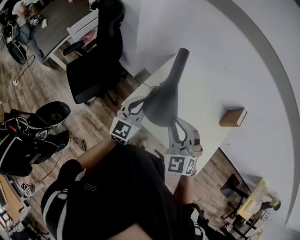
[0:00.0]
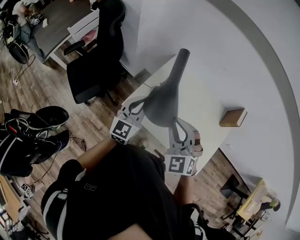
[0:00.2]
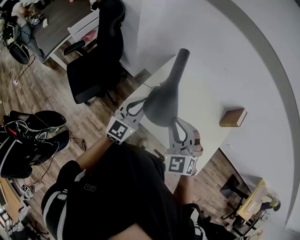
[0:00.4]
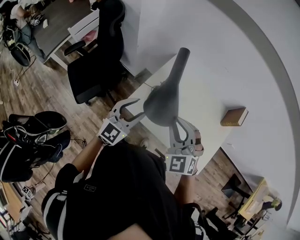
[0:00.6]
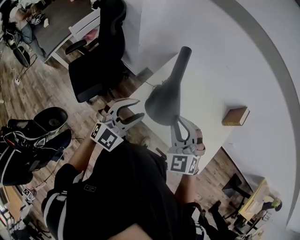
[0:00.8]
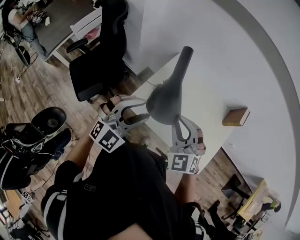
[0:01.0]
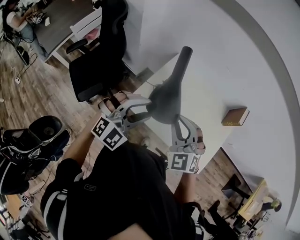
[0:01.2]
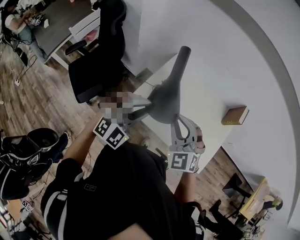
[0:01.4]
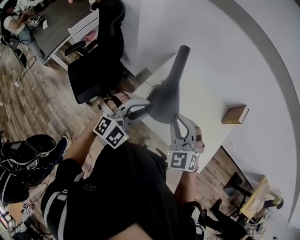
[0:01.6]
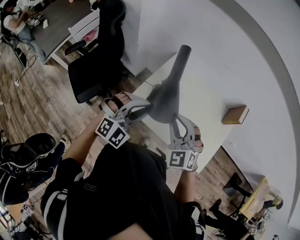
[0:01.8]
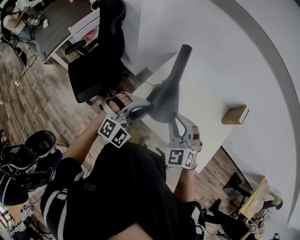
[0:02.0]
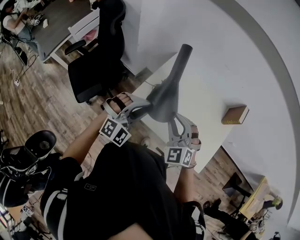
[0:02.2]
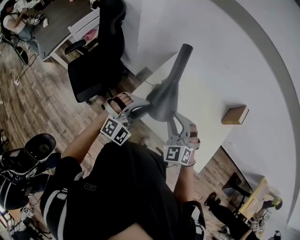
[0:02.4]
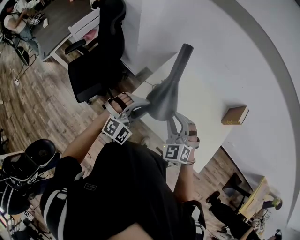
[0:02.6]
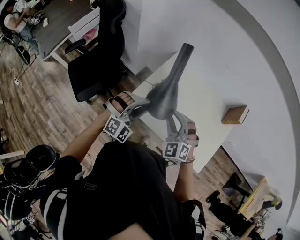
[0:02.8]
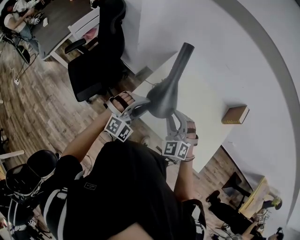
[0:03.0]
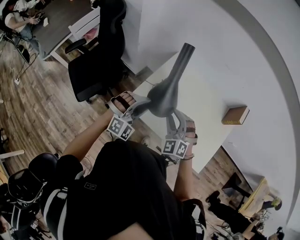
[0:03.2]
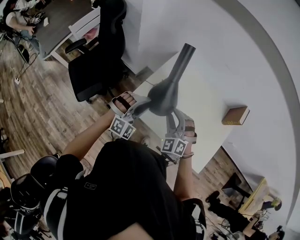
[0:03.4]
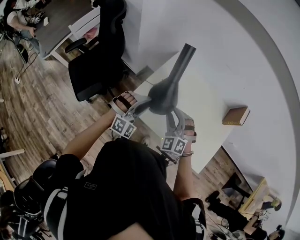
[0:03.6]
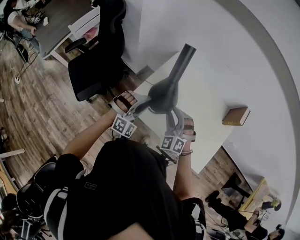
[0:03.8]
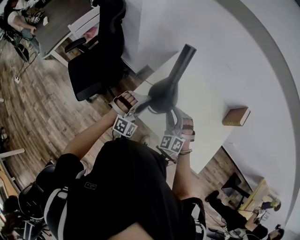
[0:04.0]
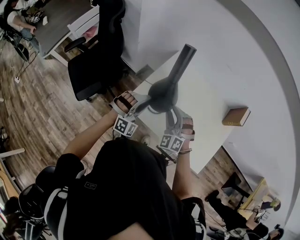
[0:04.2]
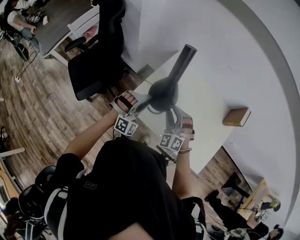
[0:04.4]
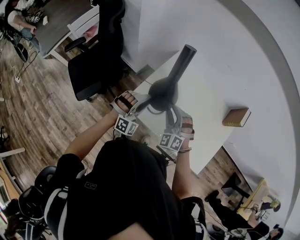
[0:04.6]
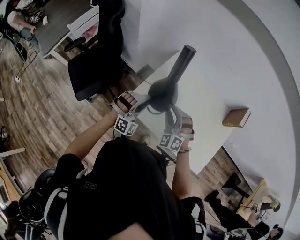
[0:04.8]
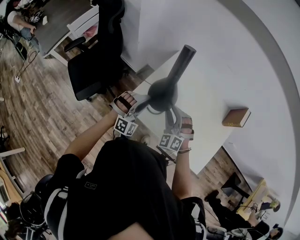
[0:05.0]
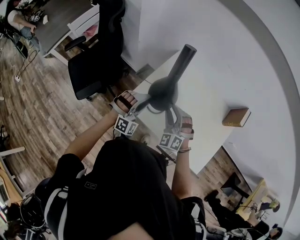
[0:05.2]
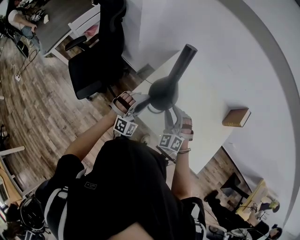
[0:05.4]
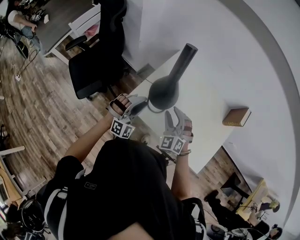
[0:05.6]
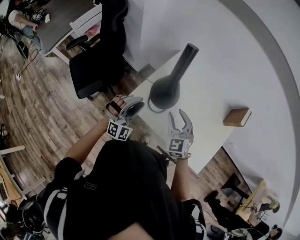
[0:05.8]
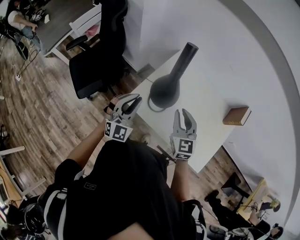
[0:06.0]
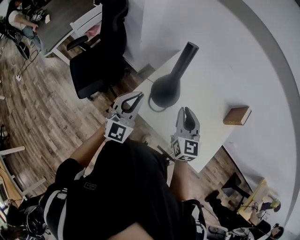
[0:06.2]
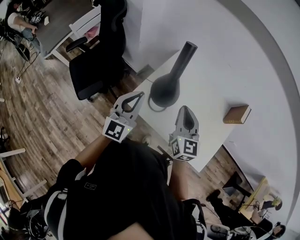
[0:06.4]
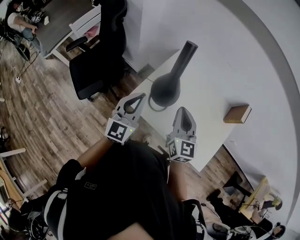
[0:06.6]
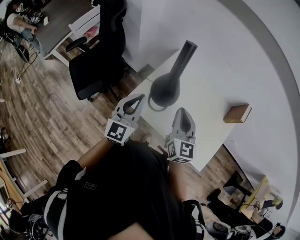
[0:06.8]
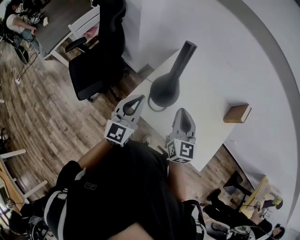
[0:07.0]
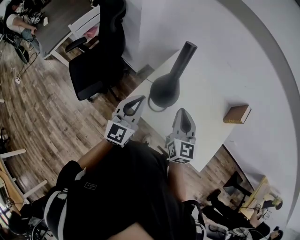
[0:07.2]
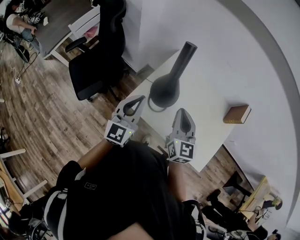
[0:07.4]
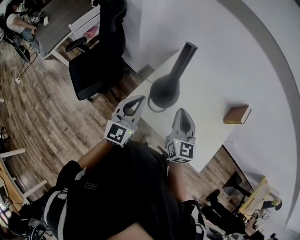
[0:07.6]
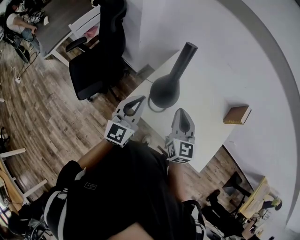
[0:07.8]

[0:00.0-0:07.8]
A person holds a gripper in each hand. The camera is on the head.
0:00.0 to 0:01.6: The left gripper goes approximately 5 cm backward, rotates around the line of its fingers by approximately 50 degrees, clockwise from behind, and opens and closes again.
0:01.6 to 0:03.2: The two grippers go some 10 cm downward.
0:03.2 to 0:04.6: The right gripper moves some 5 cm. Meanwhile the left gripper heads downward, covering some 5 cm.
0:04.6 to 0:06.2: The right gripper moves upward, roughly 10 cm, twists some 60 degrees clockwise, seen from behind, and closes up. Meanwhile the left gripper travels upward and to the left by roughly 15 cm, twists approximately 50 degrees counterclockwise, seen from behind, and closes its fingers.
0:06.2 to 0:07.8: The left gripper changes its angle by roughly 20 degrees.

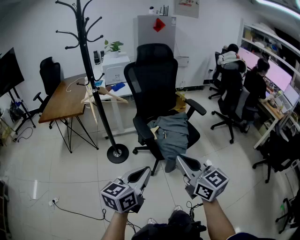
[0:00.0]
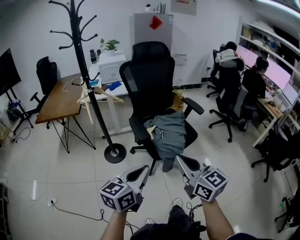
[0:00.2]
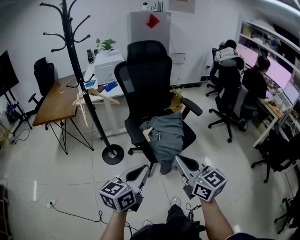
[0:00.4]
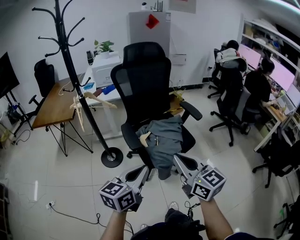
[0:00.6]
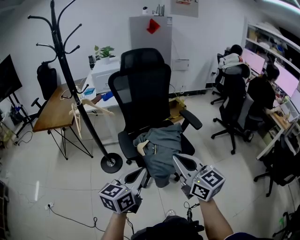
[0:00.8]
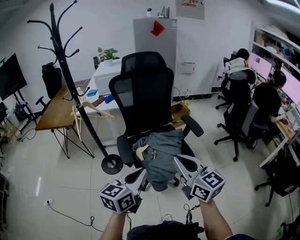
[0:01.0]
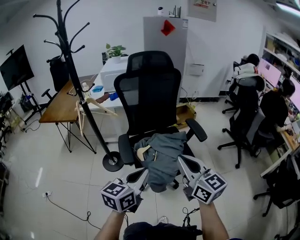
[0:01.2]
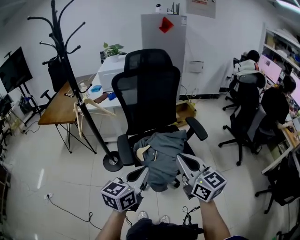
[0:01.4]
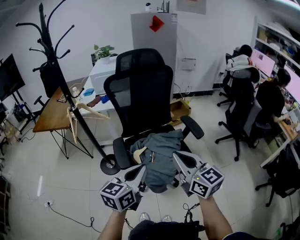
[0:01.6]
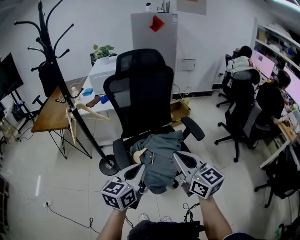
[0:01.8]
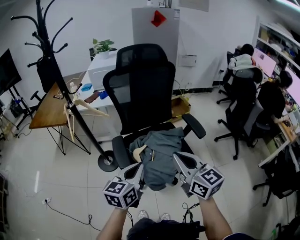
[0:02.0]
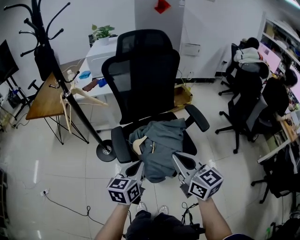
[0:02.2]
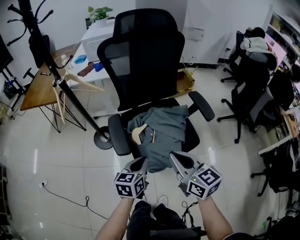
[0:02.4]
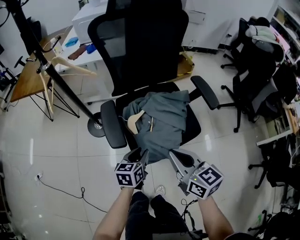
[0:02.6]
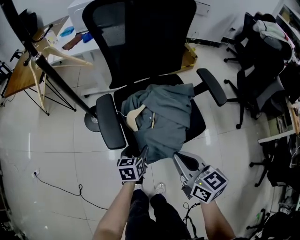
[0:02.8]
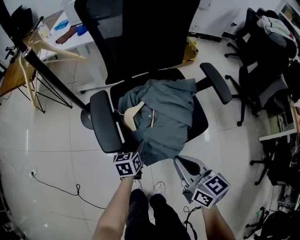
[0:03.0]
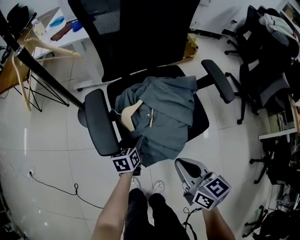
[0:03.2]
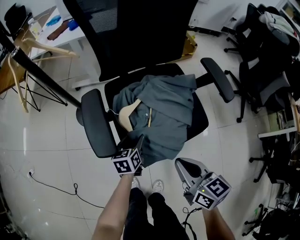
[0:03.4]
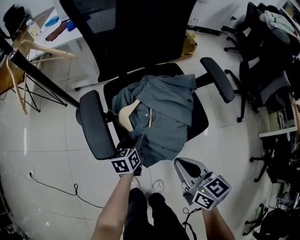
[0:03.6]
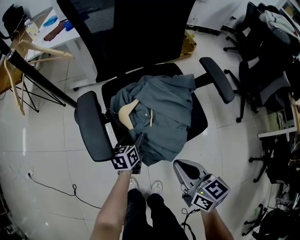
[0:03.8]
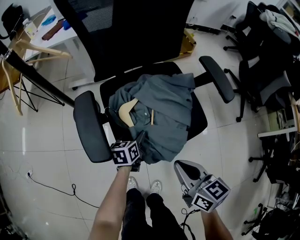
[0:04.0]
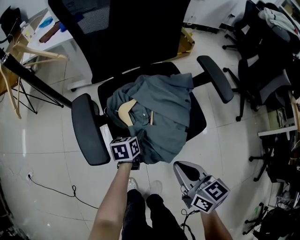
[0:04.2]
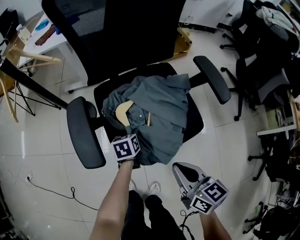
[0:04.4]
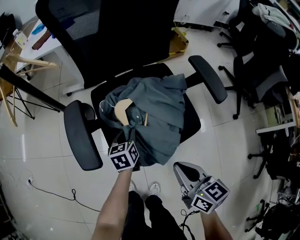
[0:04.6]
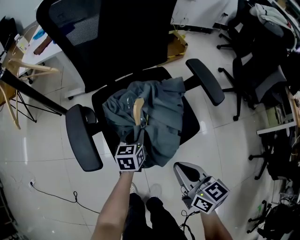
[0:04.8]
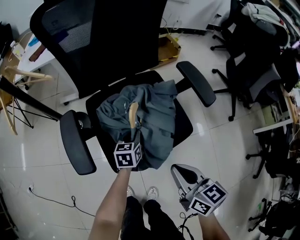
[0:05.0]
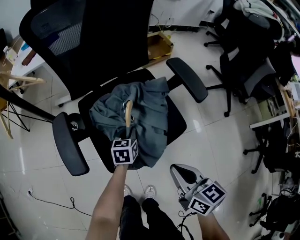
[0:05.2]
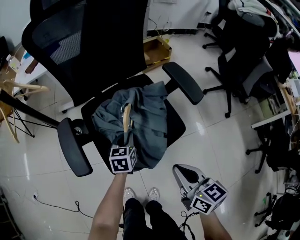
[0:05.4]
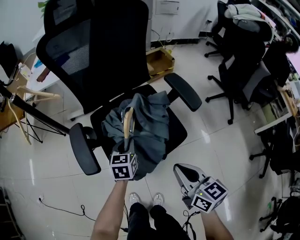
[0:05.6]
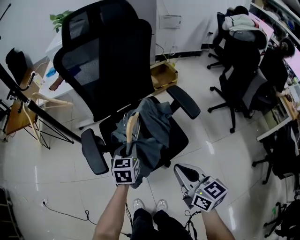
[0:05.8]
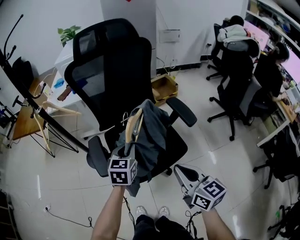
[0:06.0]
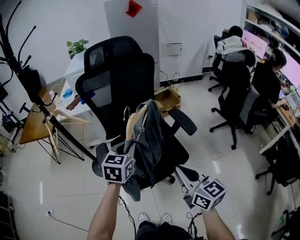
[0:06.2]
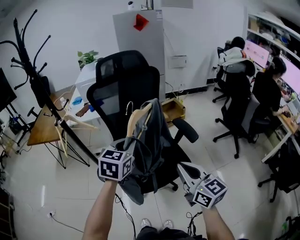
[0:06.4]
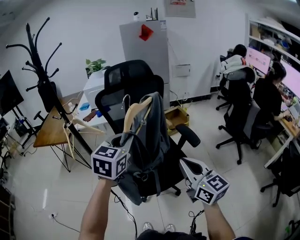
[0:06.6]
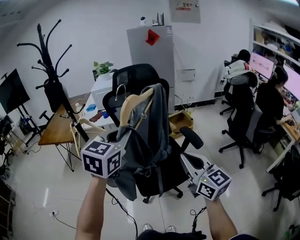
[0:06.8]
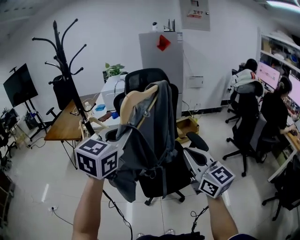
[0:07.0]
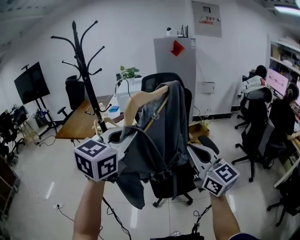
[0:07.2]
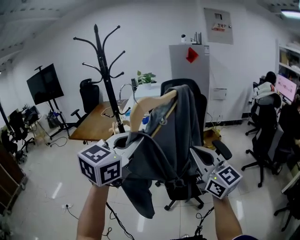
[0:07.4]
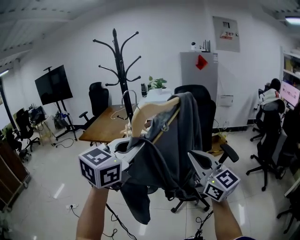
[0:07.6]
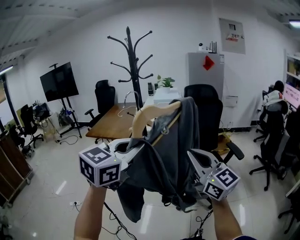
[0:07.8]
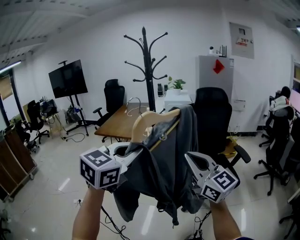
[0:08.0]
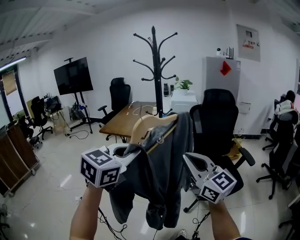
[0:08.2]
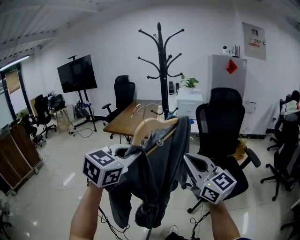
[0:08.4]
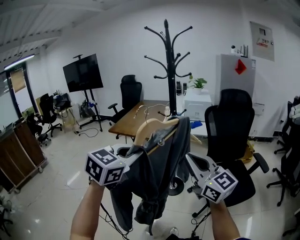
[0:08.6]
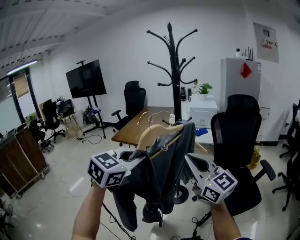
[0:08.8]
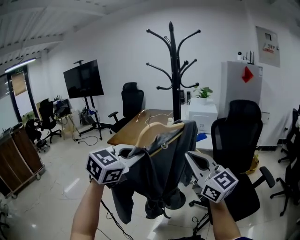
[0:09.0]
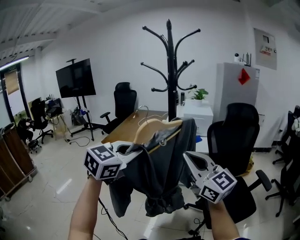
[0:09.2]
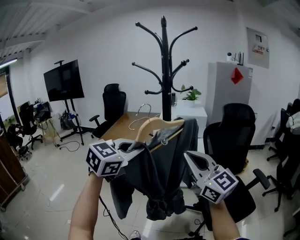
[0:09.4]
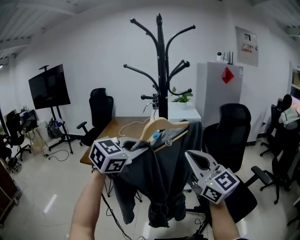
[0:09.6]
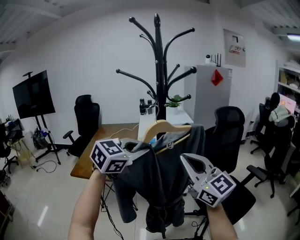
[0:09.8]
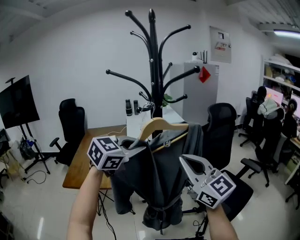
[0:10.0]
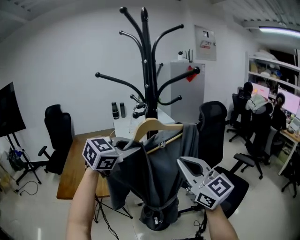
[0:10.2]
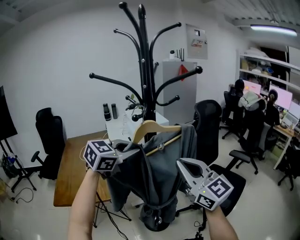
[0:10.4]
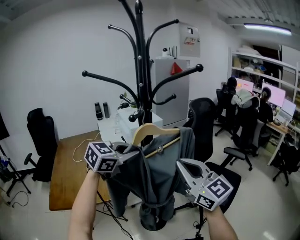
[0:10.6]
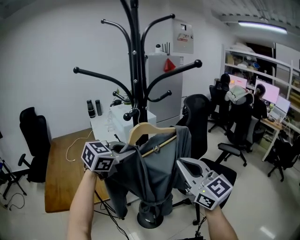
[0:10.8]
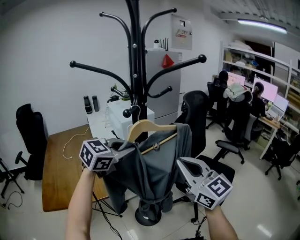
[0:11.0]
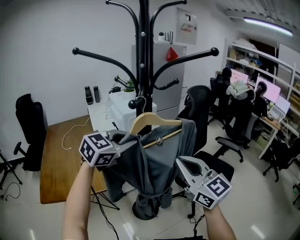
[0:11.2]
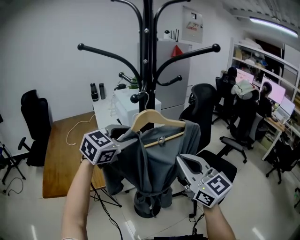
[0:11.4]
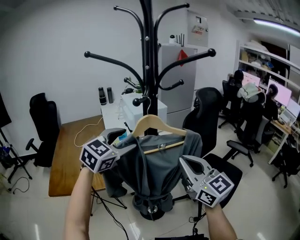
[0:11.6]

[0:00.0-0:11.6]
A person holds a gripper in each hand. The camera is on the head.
0:00.0 to 0:01.4: The two grippers go some 25 cm forward and to the right.
0:01.4 to 0:02.8: The right gripper is displaced downward by about 20 cm, and changes its angle by roughly 20 degrees; the left gripper is displaced downward by roughly 35 cm, swivels approximately 30 degrees, and opens.
0:02.8 to 0:04.4: The left gripper travels forward and downward by about 15 cm, and closes its fingers; the right gripper moves downward, about 10 cm.
0:04.4 to 0:05.8: The right gripper goes about 15 cm upward and to the right; the left gripper heads upward, covering about 20 cm, turns by about 30 degrees, and closes.
0:05.8 to 0:07.2: The right gripper is displaced upward by some 30 cm, and turns by approximately 40 degrees. The left gripper is displaced upward by some 50 cm, and swivels approximately 30 degrees.
0:07.2 to 0:08.8: The grippers both shift to the left by approximately 40 cm. The right gripper turns by some 20 degrees.
0:08.8 to 0:10.2: The left gripper moves roughly 40 cm, and turns by roughly 50 degrees; the right gripper moves some 25 cm, and changes its angle by approximately 40 degrees.
0:10.2 to 0:11.6: The right gripper shifts approximately 5 cm downward. Meanwhile the left gripper shifts by approximately 10 cm, and opens its fingers.

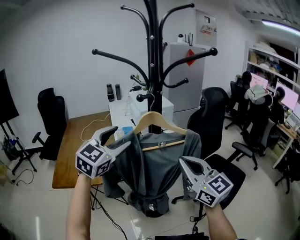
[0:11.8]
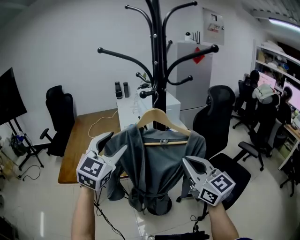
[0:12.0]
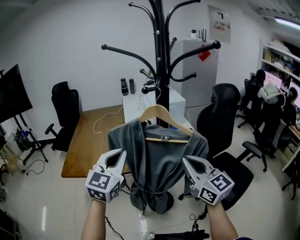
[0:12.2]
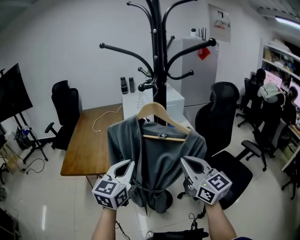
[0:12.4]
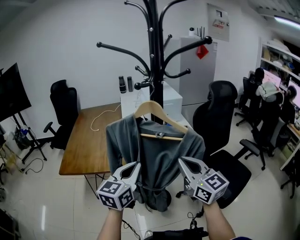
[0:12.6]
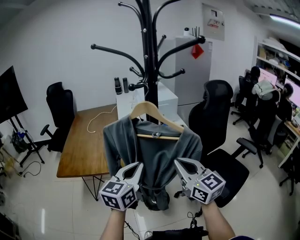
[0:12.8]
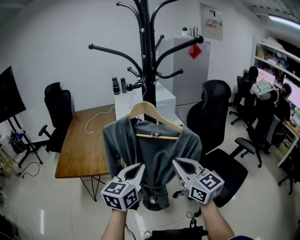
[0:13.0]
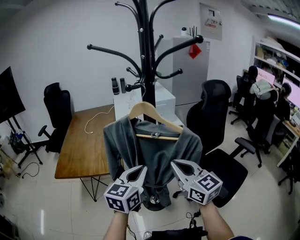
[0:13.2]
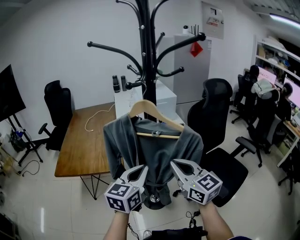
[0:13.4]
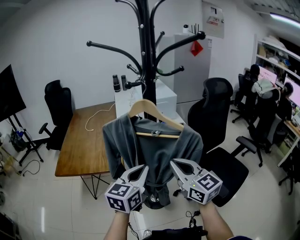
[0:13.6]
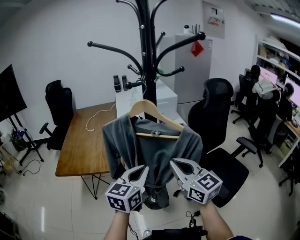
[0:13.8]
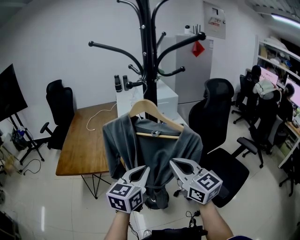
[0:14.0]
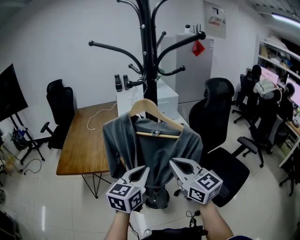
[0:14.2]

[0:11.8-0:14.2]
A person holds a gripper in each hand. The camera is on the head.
0:11.8 to 0:13.0: The left gripper shifts some 15 cm downward, backward and to the right, swivels roughly 30 degrees, and closes. The right gripper is displaced downward by approximately 5 cm.
0:13.0 to 0:14.2: There are only small adjustments of the grippers.

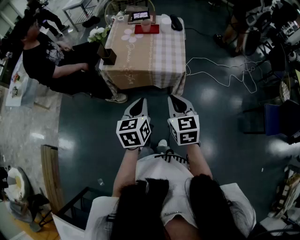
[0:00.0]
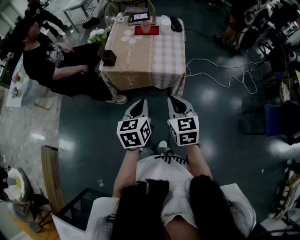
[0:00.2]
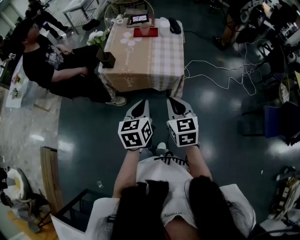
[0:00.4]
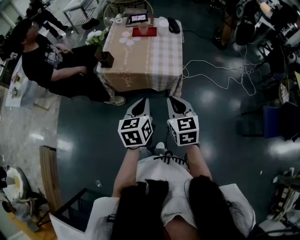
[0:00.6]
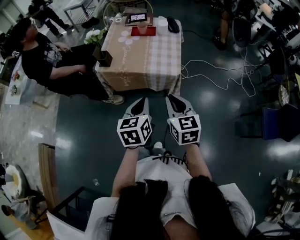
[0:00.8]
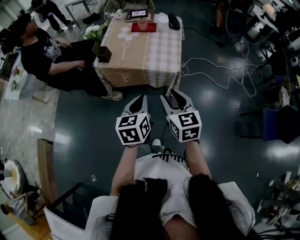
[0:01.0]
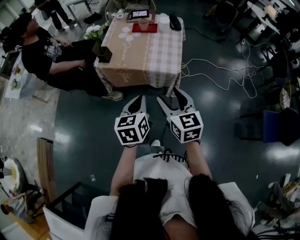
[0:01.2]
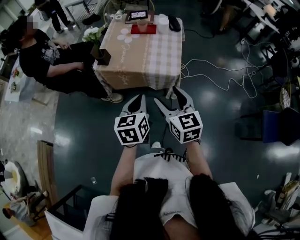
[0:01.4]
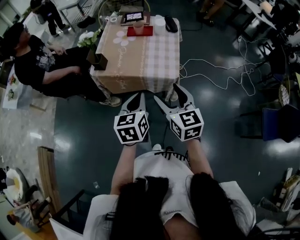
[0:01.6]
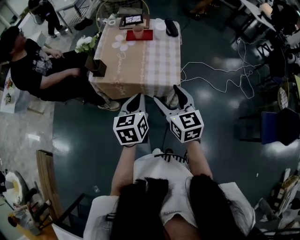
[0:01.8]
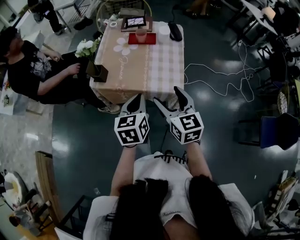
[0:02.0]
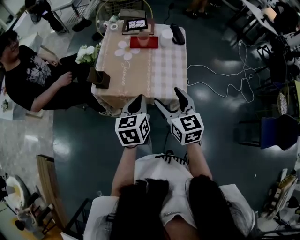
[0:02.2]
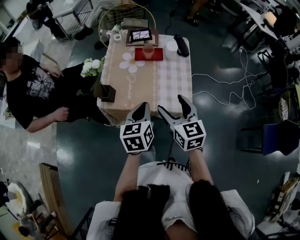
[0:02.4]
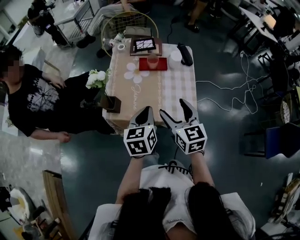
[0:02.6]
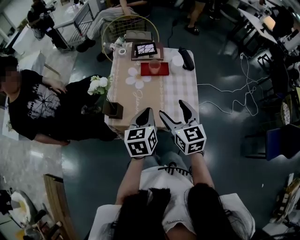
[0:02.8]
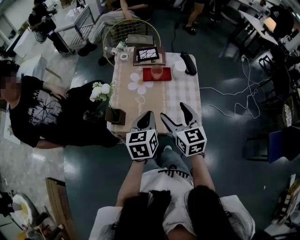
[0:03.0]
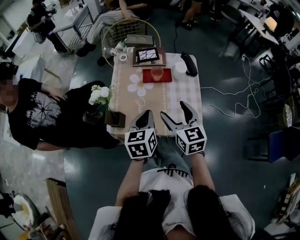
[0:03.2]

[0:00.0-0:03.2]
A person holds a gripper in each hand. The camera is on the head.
0:00.0 to 0:01.6: The two grippers go about 5 cm forward. The right gripper opens up.
0:01.6 to 0:03.2: The grippers both shift forward by some 30 cm.
